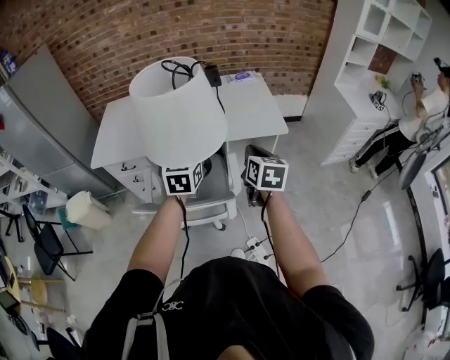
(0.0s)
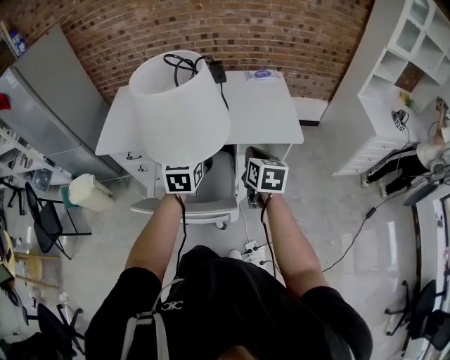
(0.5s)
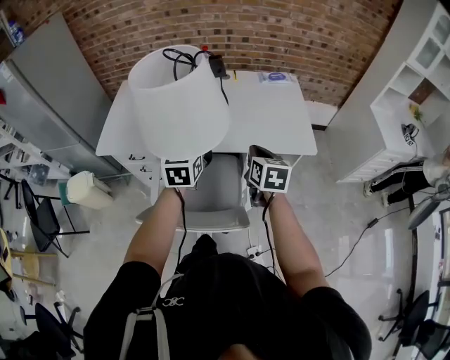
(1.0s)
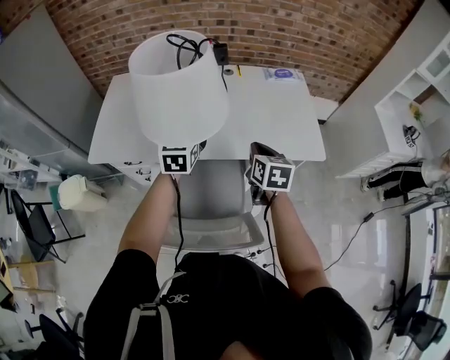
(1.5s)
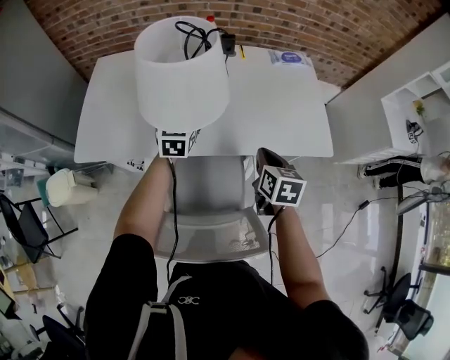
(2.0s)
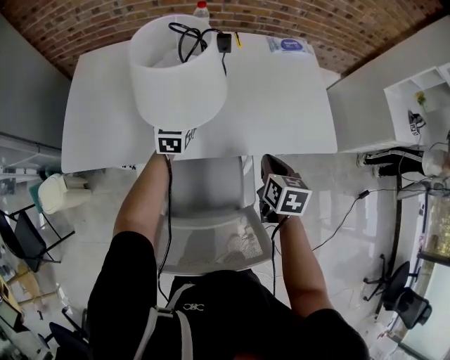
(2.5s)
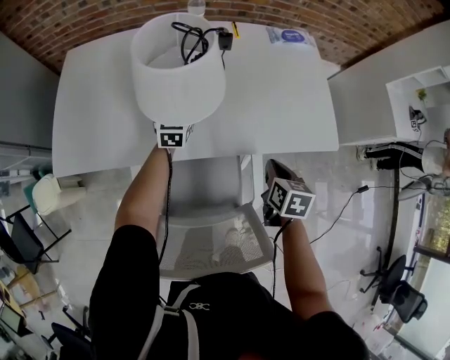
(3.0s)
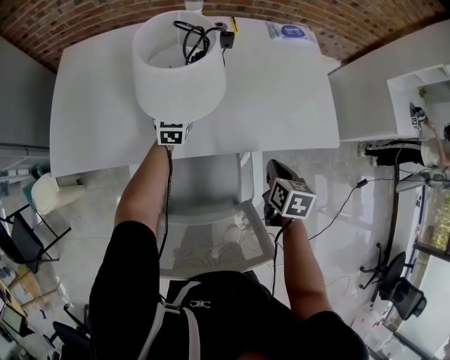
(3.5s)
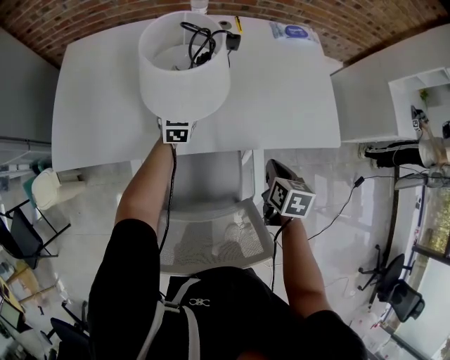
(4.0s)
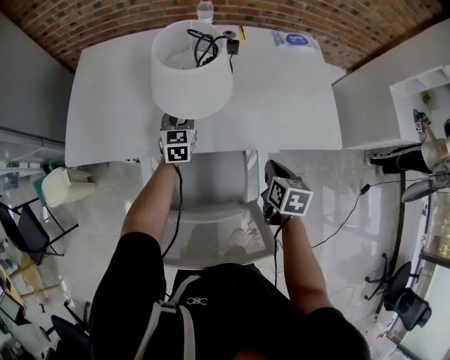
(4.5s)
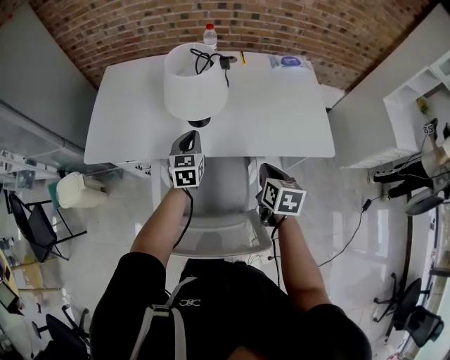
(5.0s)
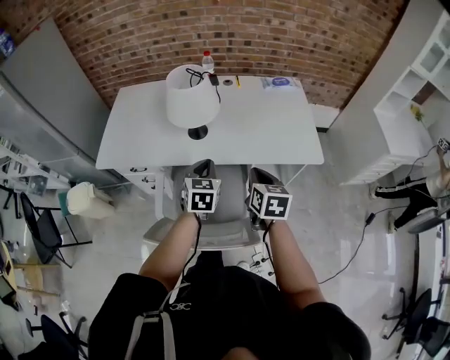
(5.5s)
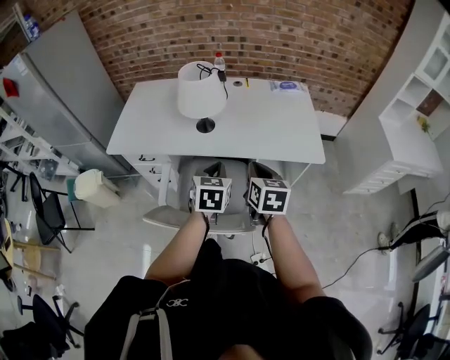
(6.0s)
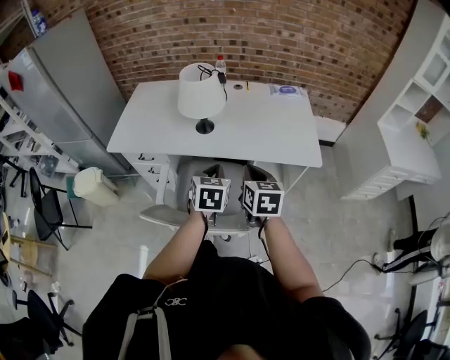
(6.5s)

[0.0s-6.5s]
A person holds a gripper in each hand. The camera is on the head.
0.0s to 2.0s: The left gripper is displaced forward and to the left by some 40 cm, while the right gripper moves forward, to the left and downward, approximately 30 cm.
2.0s to 4.5s: The left gripper travels downward by some 15 cm. The right gripper goes some 10 cm downward.
4.5s to 6.5s: The left gripper moves backward, upward and to the right, some 40 cm, and closes up. The right gripper is displaced upward and backward by about 20 cm, and rotates roughly 30 degrees.

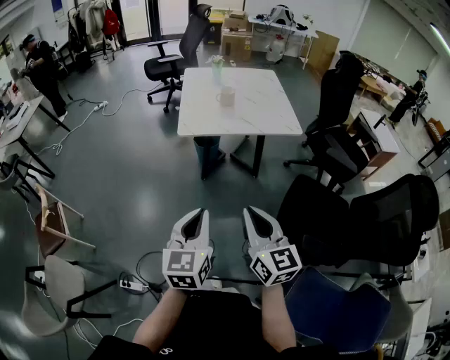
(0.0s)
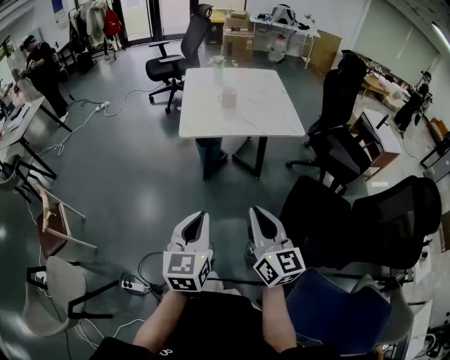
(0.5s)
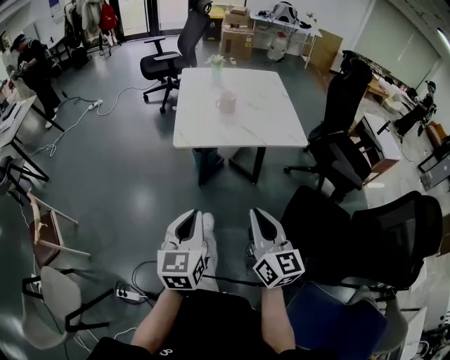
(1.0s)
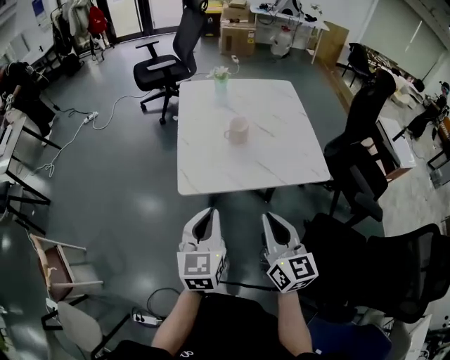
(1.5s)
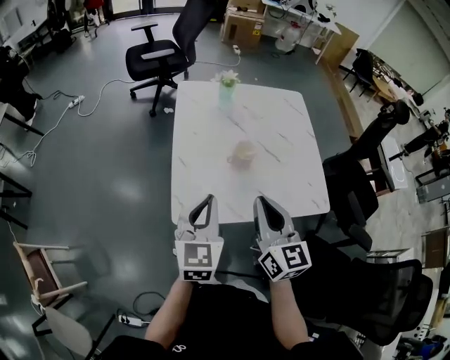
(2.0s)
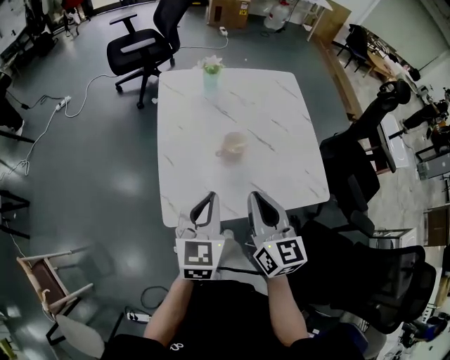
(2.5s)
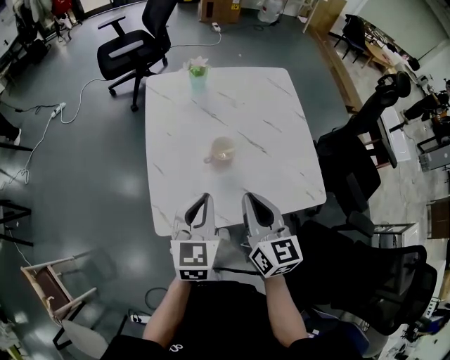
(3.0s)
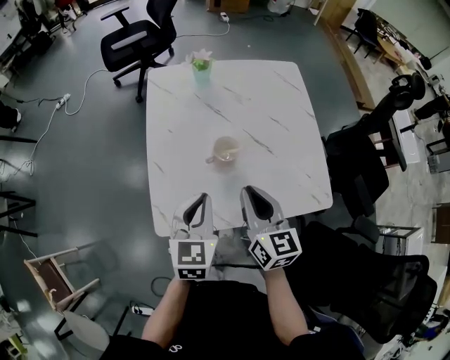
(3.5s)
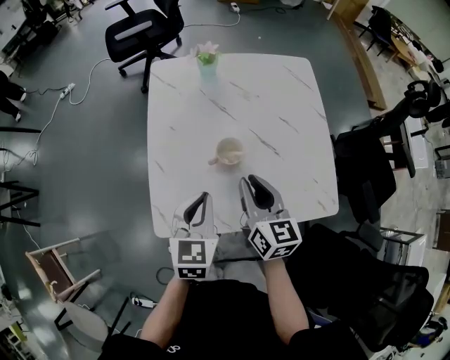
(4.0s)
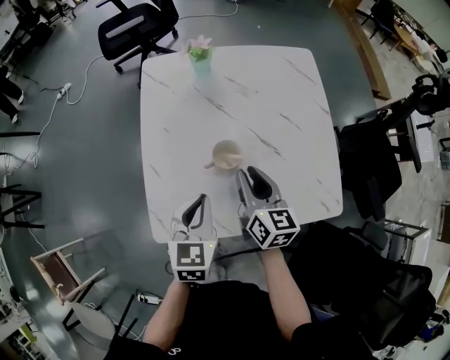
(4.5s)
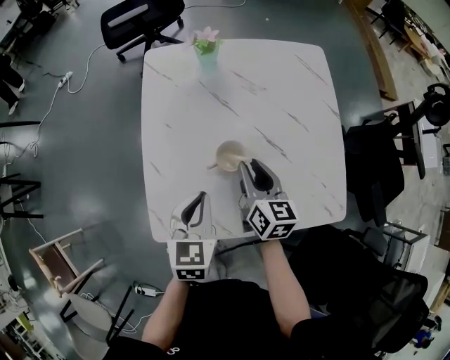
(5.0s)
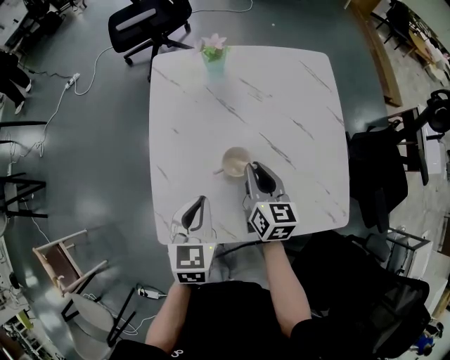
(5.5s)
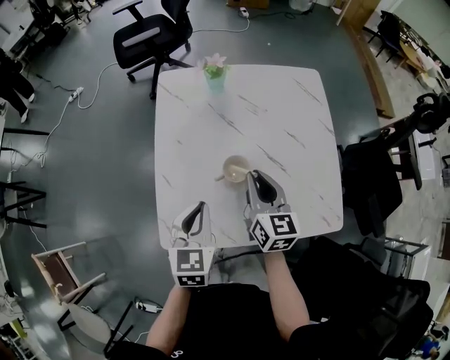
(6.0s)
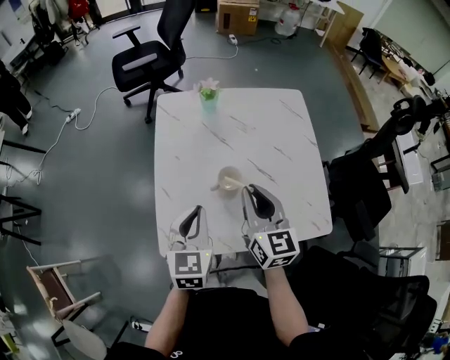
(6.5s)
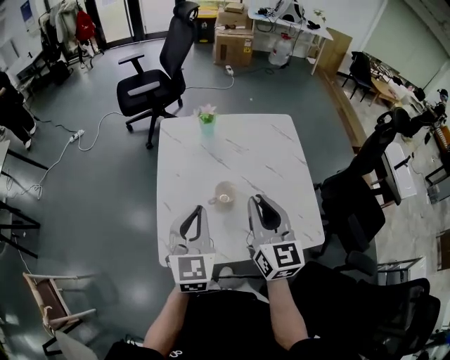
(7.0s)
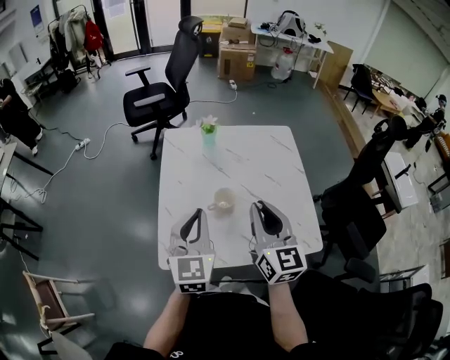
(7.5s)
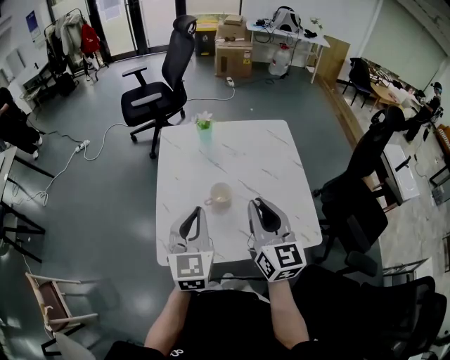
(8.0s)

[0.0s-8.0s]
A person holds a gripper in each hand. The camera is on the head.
0.0s to 2.0s: Both grippers are carried forward, some 50 cm.
2.0s to 4.0s: The grippers both shift forward, downward and to the right by about 15 cm.
4.0s to 6.0s: The right gripper travels forward by about 5 cm, and moves roughly 10 cm downward and comes back.
6.0s to 8.0s: The right gripper is displaced upward and backward by approximately 20 cm. The left gripper travels upward by about 15 cm, and turns by approximately 20 degrees.

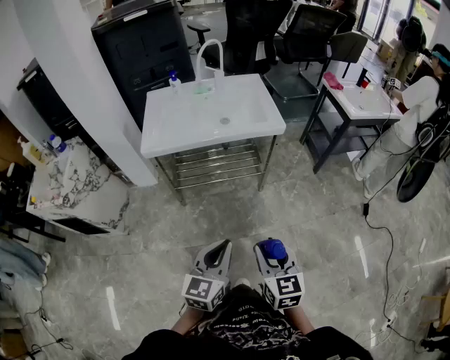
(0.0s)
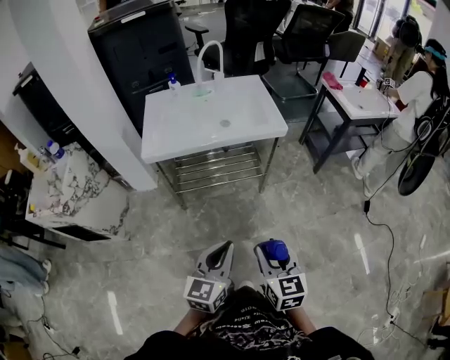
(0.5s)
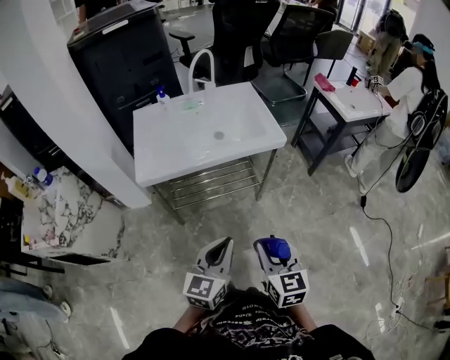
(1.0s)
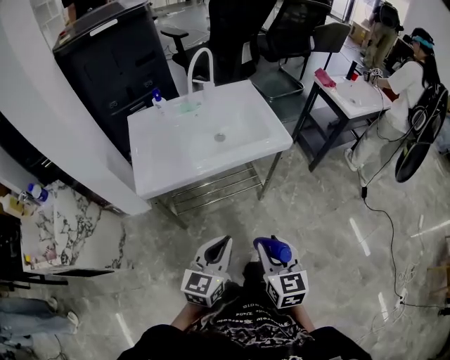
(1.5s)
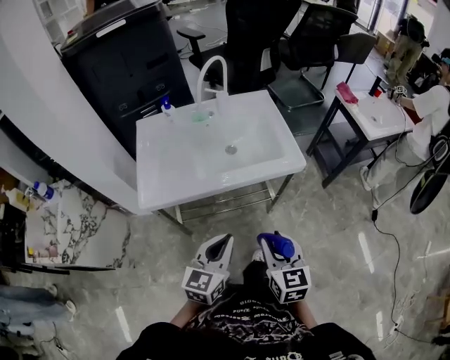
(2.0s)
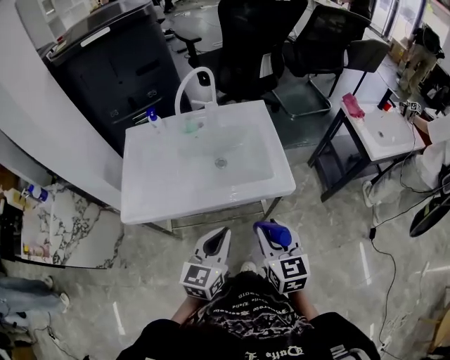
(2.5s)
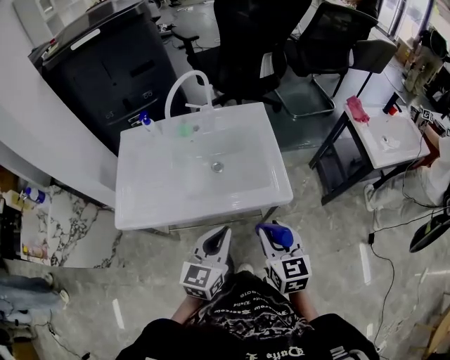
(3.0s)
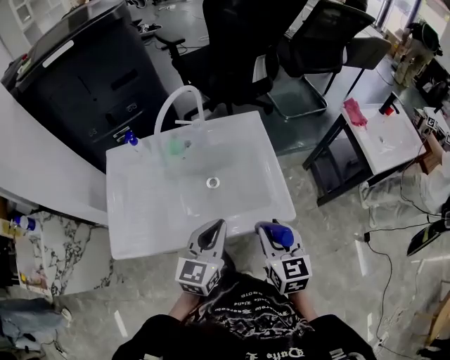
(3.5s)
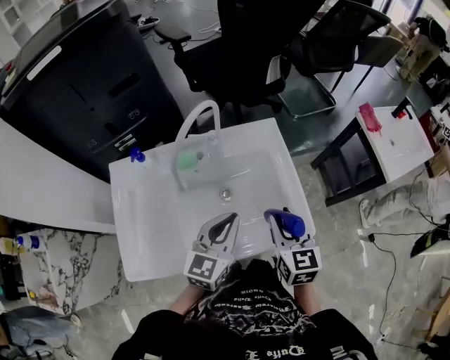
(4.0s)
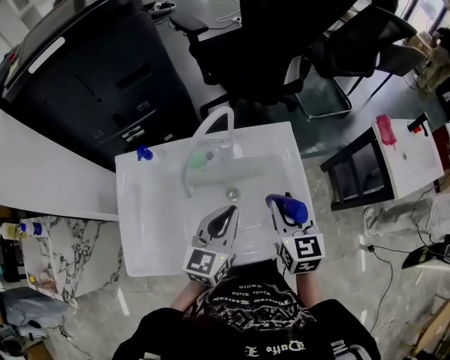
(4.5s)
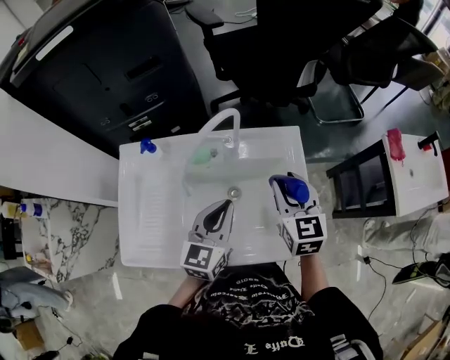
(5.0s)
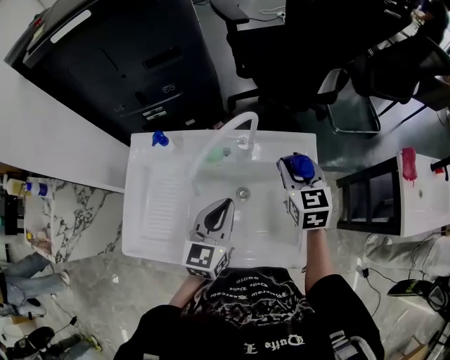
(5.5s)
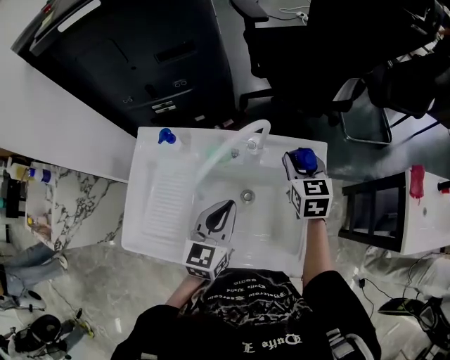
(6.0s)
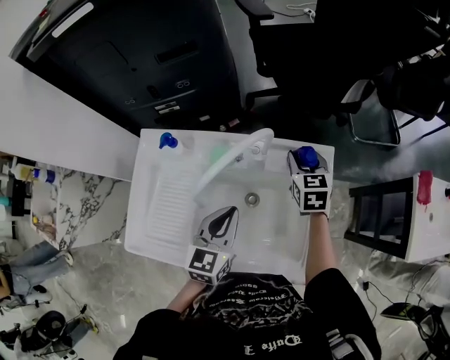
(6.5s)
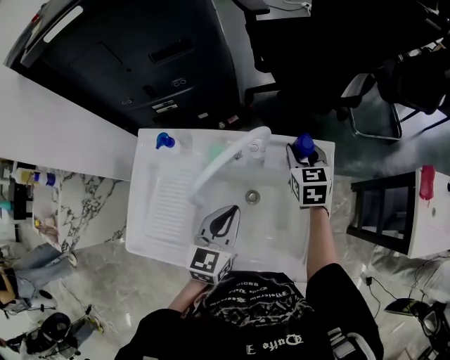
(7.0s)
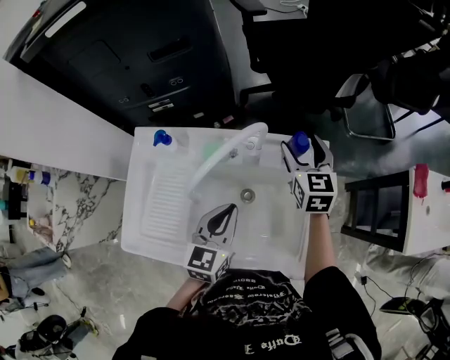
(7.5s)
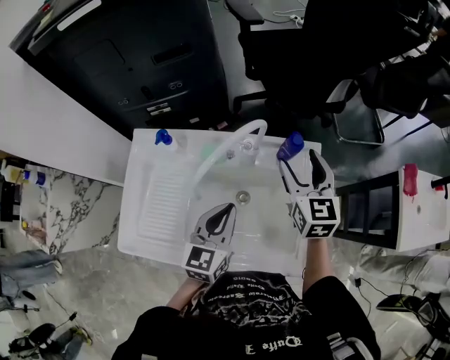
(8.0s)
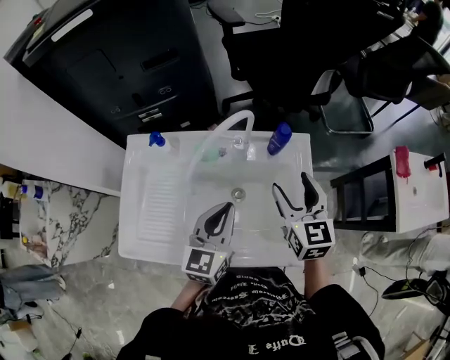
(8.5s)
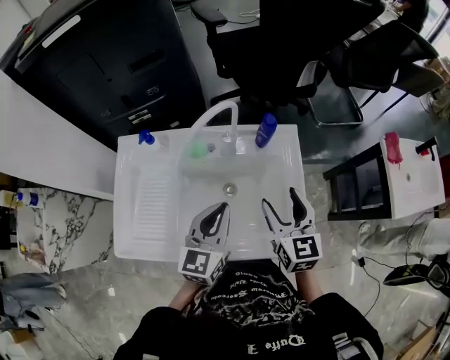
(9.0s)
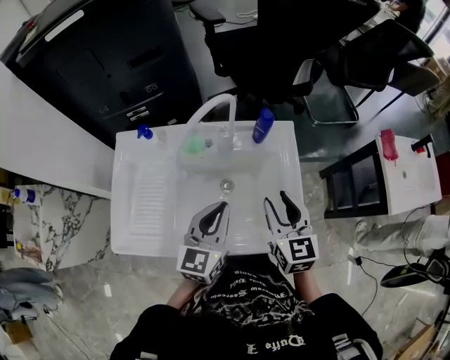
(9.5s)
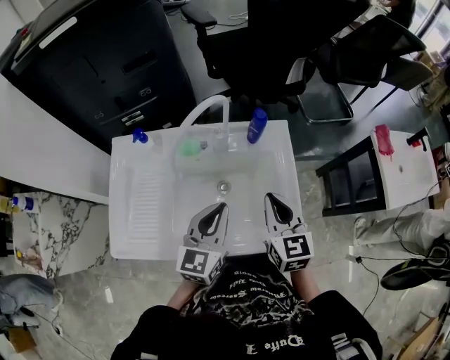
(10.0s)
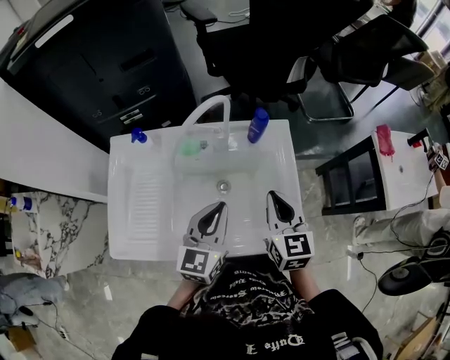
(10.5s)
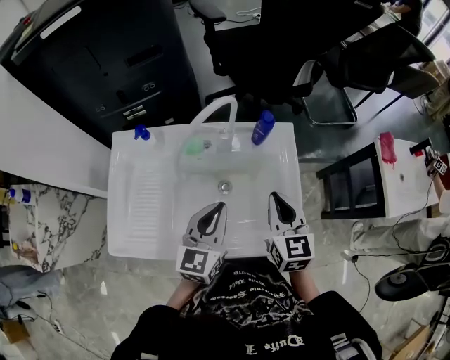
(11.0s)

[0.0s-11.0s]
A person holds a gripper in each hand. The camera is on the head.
0.0s to 2.0s: The two grippers go roughly 25 cm forward.
2.0s to 3.5s: The two grippers go about 25 cm forward.
3.5s to 5.5s: The left gripper is displaced forward and to the left by approximately 20 cm. Meanwhile the right gripper moves forward, approximately 35 cm.
5.5s to 7.5s: The right gripper travels forward by approximately 10 cm, and opens its fingers.
7.5s to 9.0s: The right gripper travels backward by roughly 20 cm, while the left gripper travels backward by roughly 5 cm.
9.0s to 11.0s: The right gripper closes up.

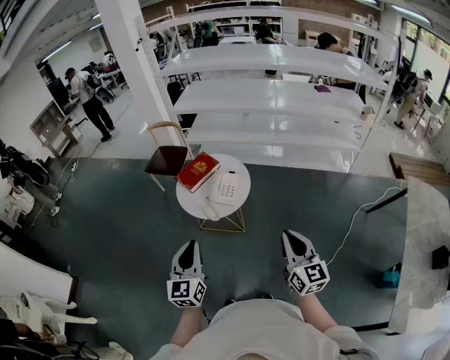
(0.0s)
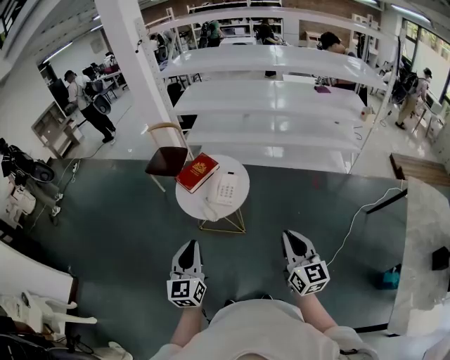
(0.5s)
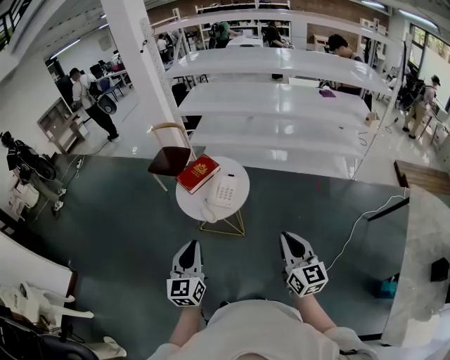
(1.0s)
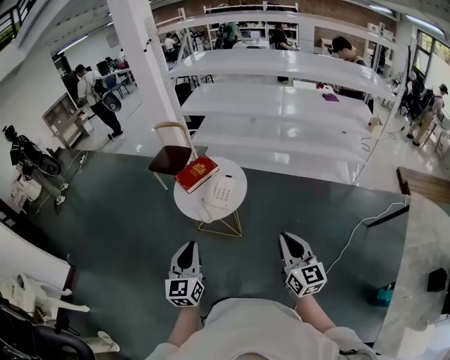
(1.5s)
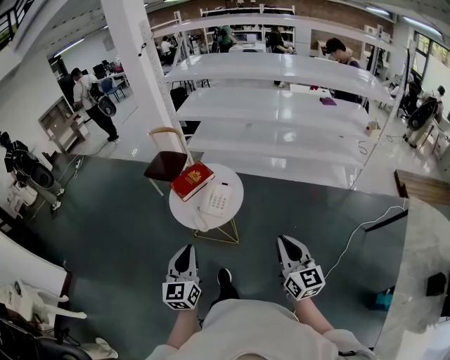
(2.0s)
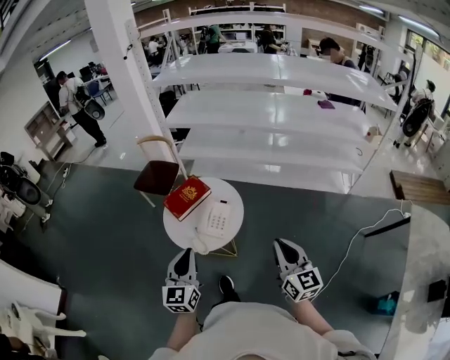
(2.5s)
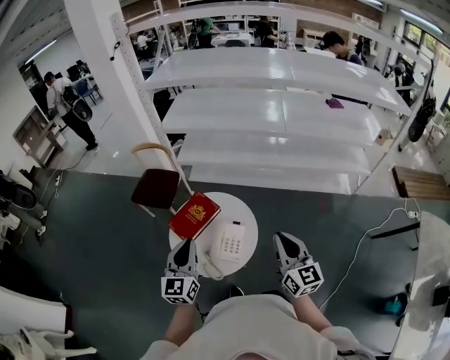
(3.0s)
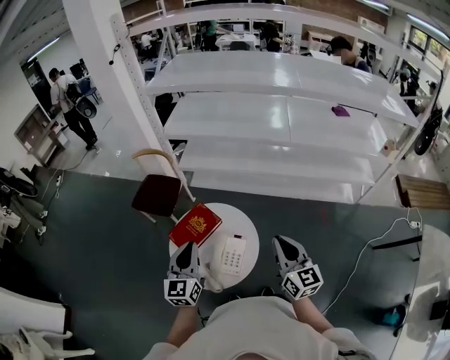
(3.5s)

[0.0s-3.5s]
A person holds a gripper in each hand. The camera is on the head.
0.0s to 2.0s: Both grippers move to the right, about 5 cm.
2.0s to 3.5s: Both grippers move forward, approximately 40 cm.
